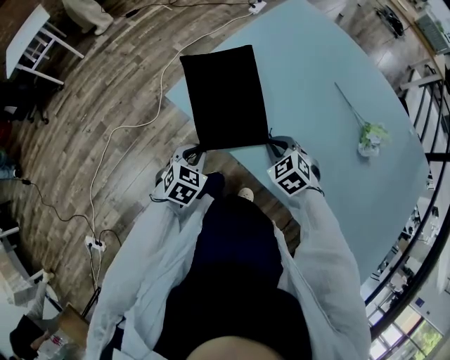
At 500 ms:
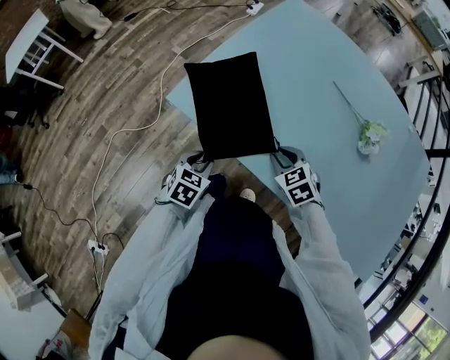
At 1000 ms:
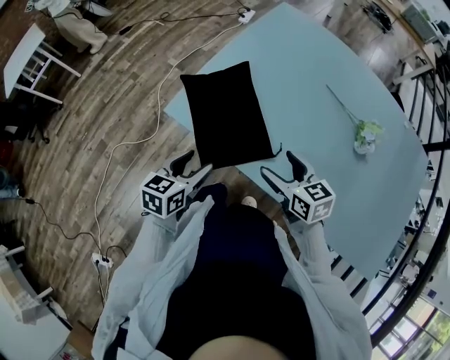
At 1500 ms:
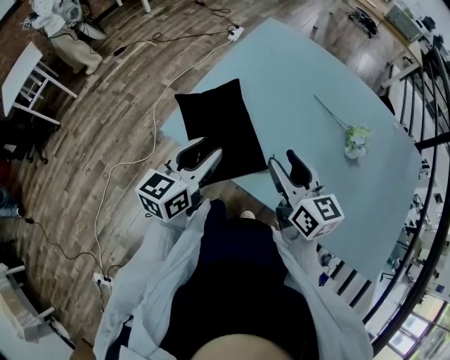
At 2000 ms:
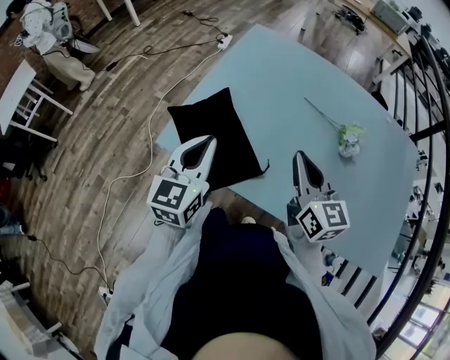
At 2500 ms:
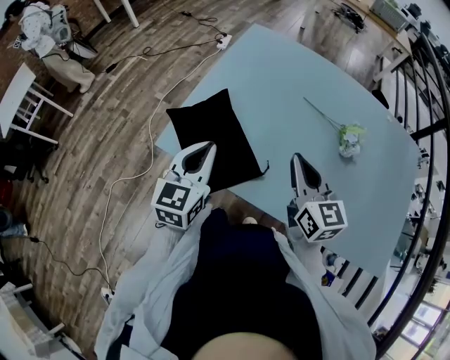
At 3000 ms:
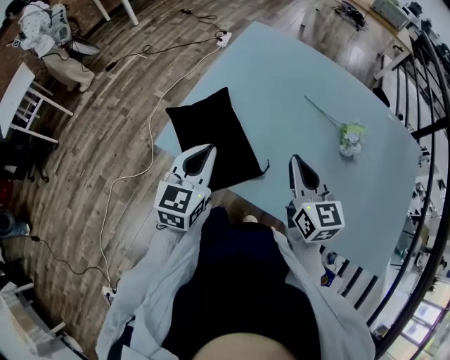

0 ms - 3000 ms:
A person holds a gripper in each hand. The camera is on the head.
0 ms - 1500 ms: Both grippers travel together upward, some 20 cm. The left gripper angles its fingers upward, by approximately 40 degrees, and opens; the right gripper tips its fingers upward by about 40 degrees, and opens.
1500 ms - 3000 ms: The right gripper is displaced to the right by approximately 5 cm, and closes; the left gripper closes up.

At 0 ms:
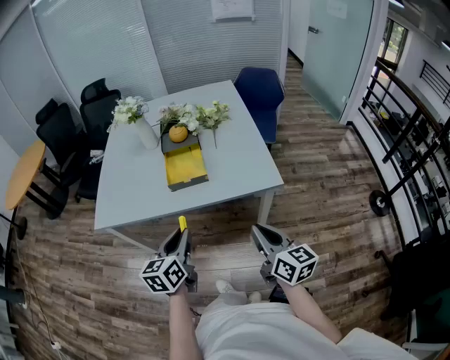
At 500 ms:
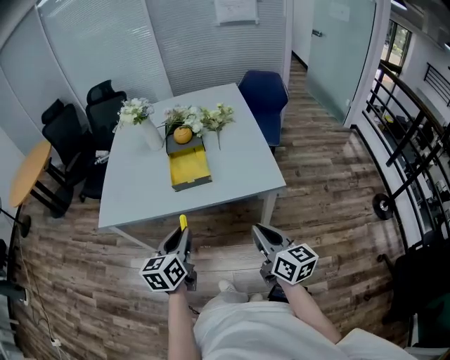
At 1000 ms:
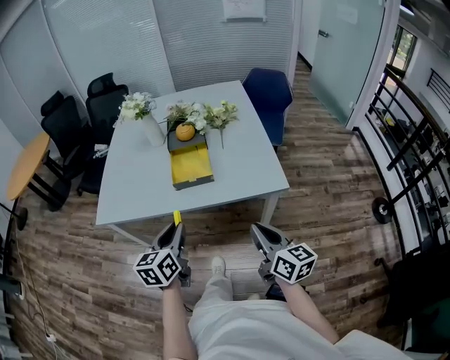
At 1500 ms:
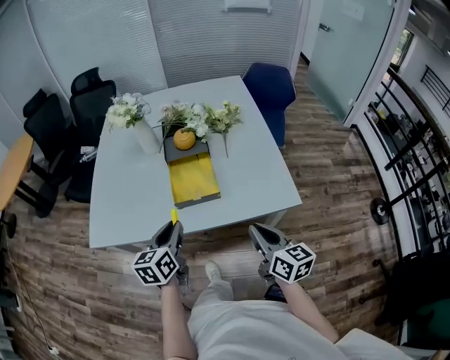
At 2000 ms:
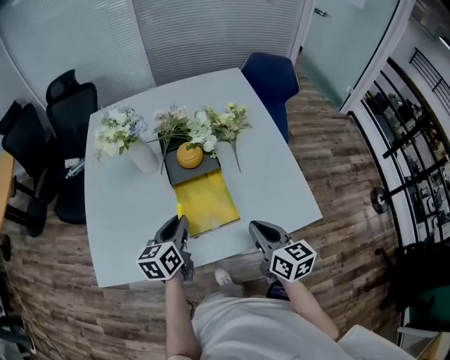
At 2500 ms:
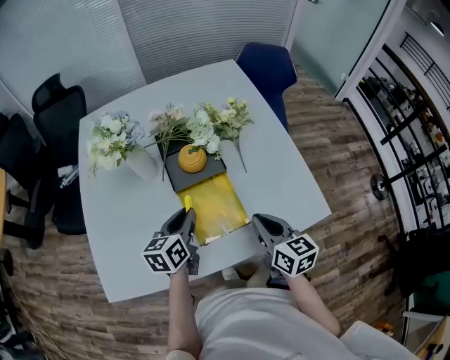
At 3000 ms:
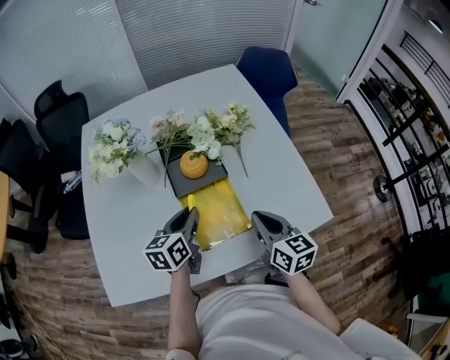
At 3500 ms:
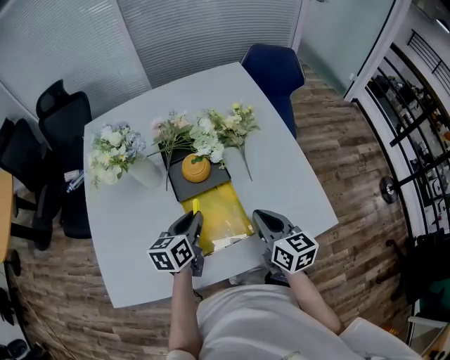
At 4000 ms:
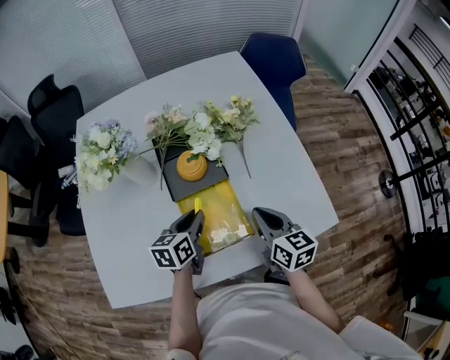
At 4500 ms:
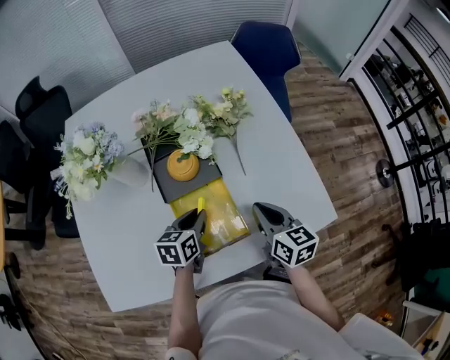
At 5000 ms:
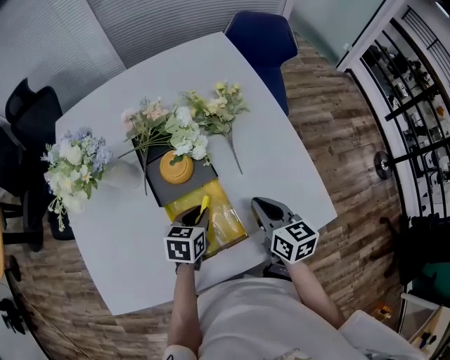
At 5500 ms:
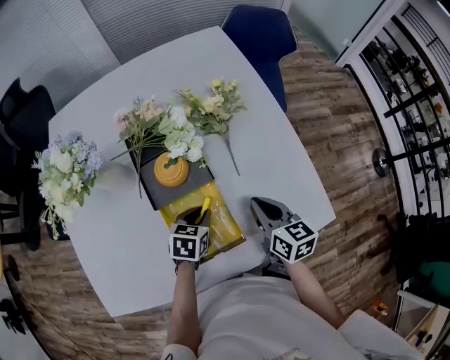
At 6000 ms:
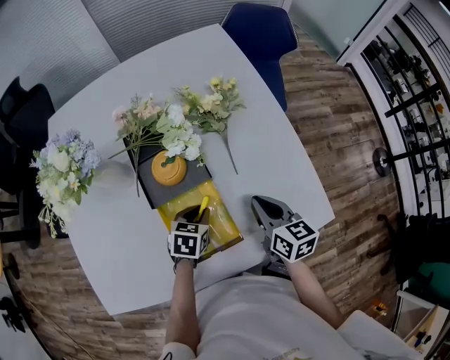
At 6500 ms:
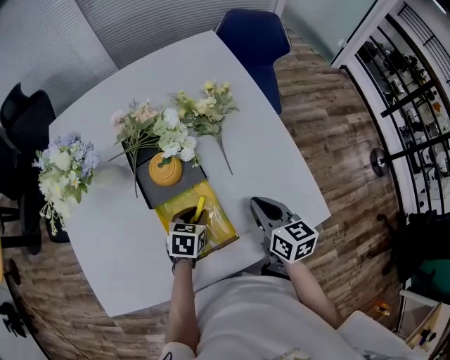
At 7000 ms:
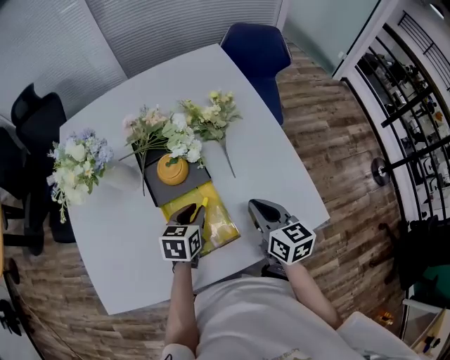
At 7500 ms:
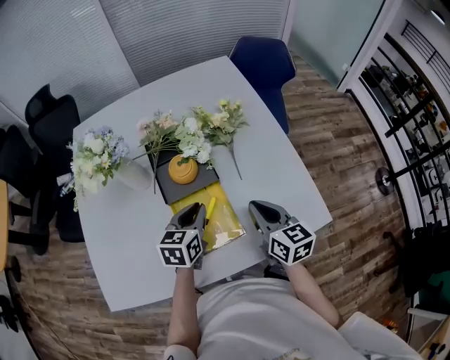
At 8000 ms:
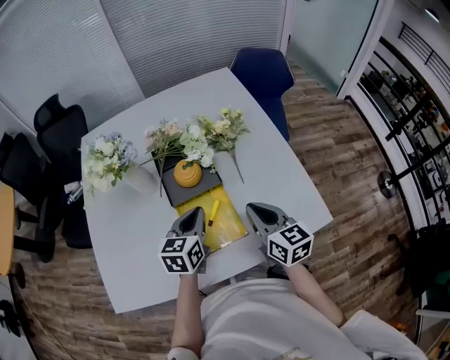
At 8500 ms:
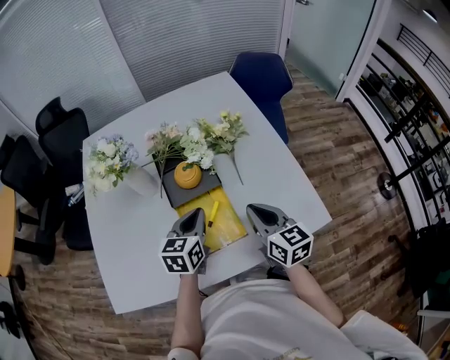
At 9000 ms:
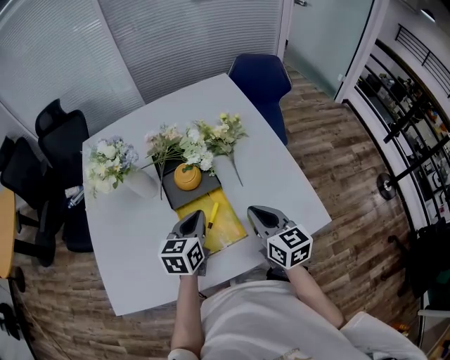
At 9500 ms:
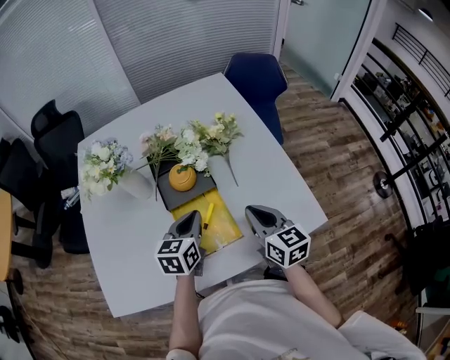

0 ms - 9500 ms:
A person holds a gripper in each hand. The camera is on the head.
0 ms - 2000 ms: Both grippers move forward, some 30 cm.
2000 ms - 4000 ms: The left gripper shifts approximately 10 cm forward and downward. The right gripper heads forward, covering roughly 10 cm.
4000 ms - 5500 ms: The left gripper shifts roughly 10 cm downward and to the right, and changes its angle by some 30 degrees, while the right gripper is displaced forward by about 5 cm.
5500 ms - 7500 ms: The right gripper heads upward, covering roughly 5 cm, while the left gripper heads upward, covering about 10 cm, and turns by some 20 degrees.
7500 ms - 9500 ms: The grippers move only a little.

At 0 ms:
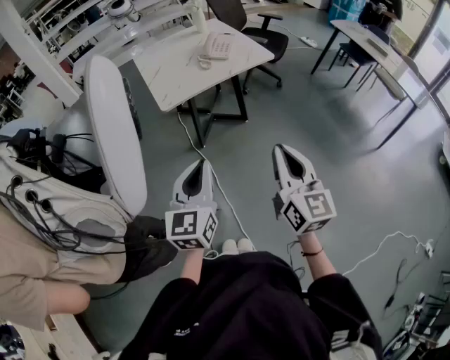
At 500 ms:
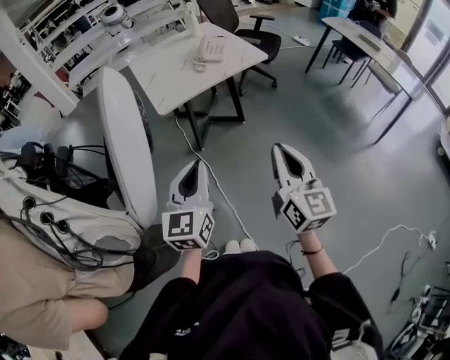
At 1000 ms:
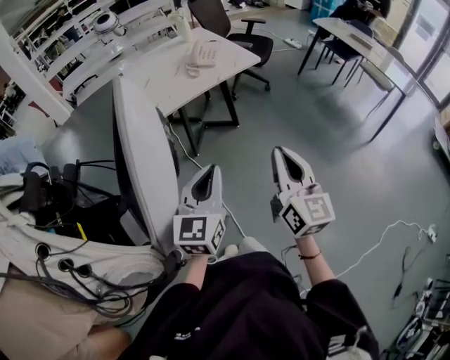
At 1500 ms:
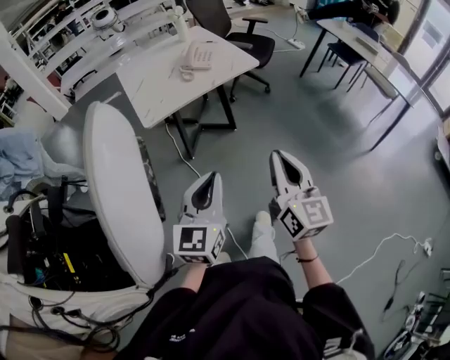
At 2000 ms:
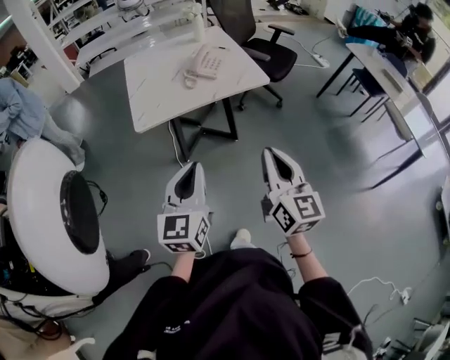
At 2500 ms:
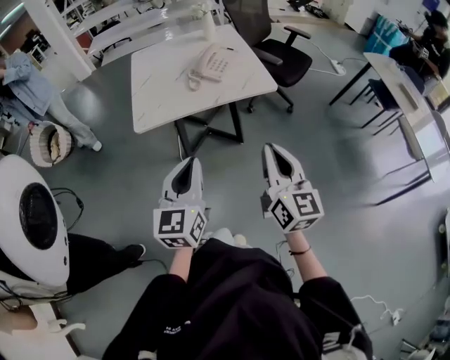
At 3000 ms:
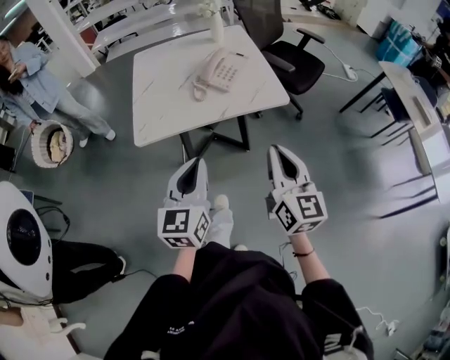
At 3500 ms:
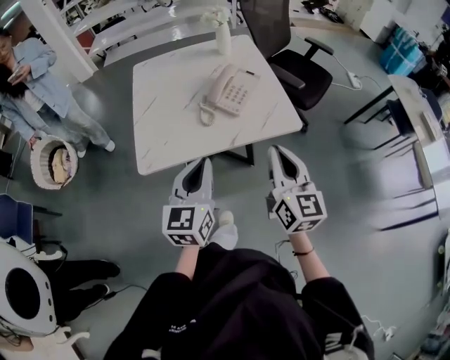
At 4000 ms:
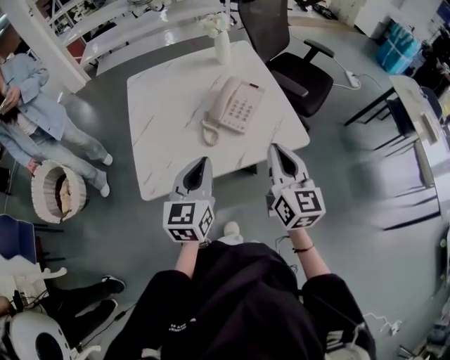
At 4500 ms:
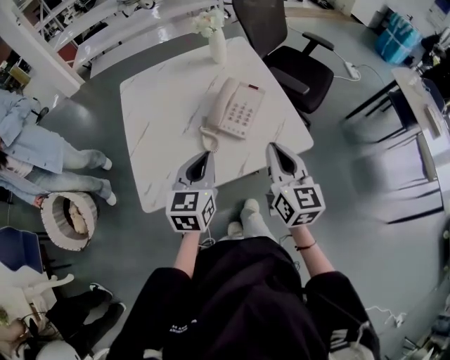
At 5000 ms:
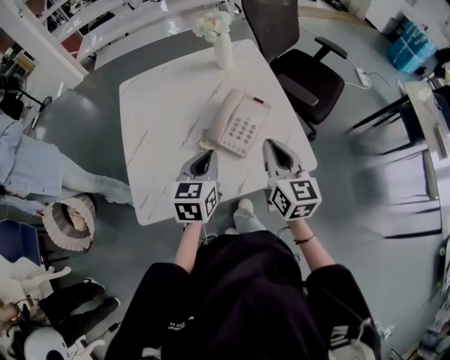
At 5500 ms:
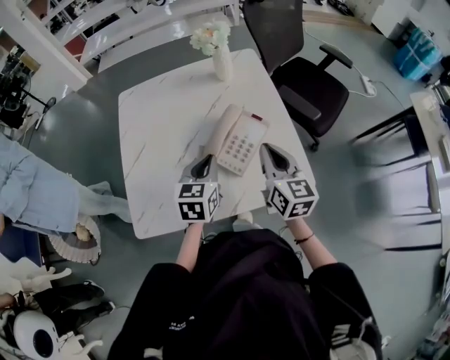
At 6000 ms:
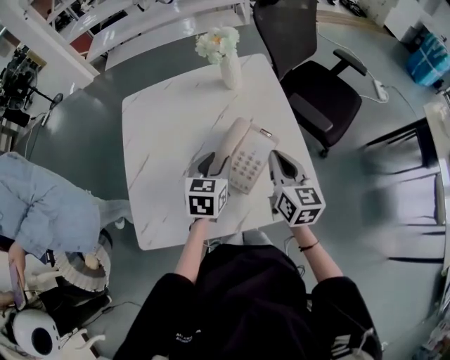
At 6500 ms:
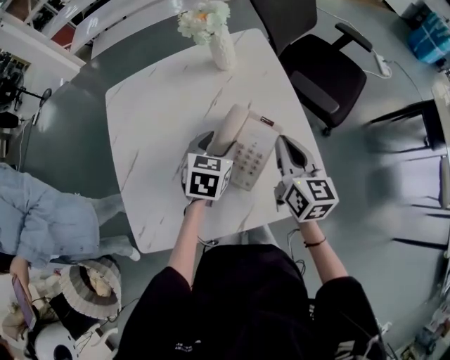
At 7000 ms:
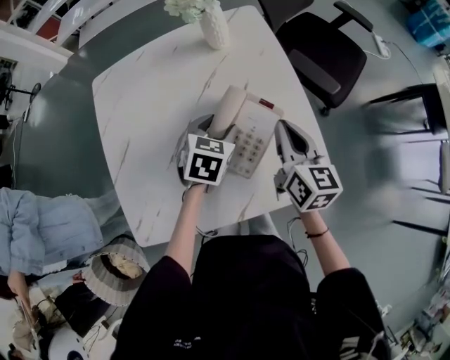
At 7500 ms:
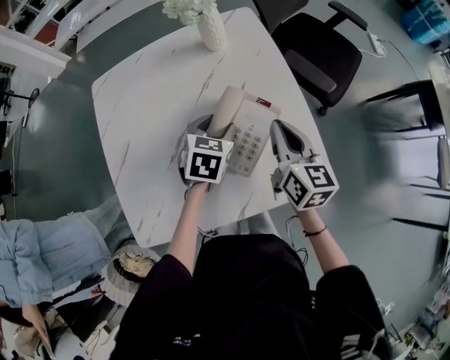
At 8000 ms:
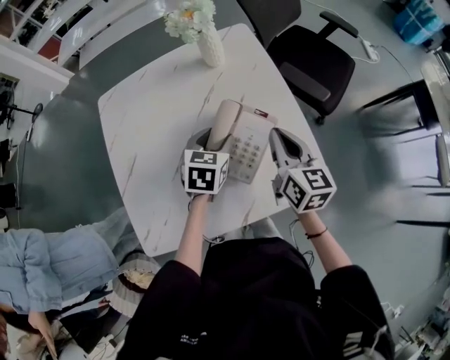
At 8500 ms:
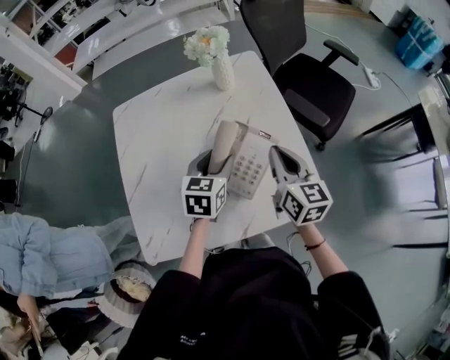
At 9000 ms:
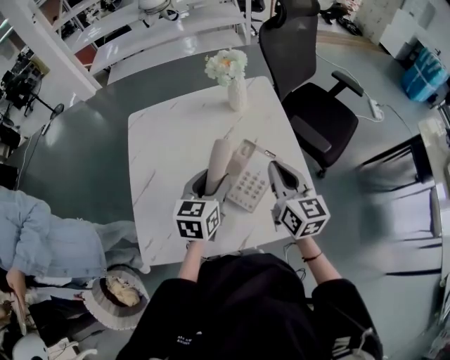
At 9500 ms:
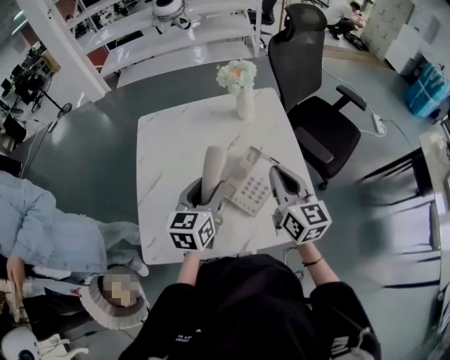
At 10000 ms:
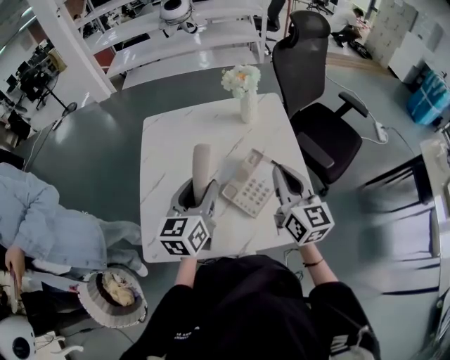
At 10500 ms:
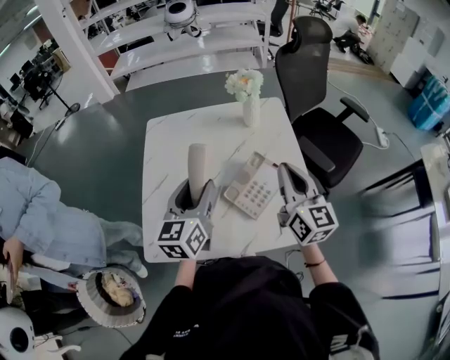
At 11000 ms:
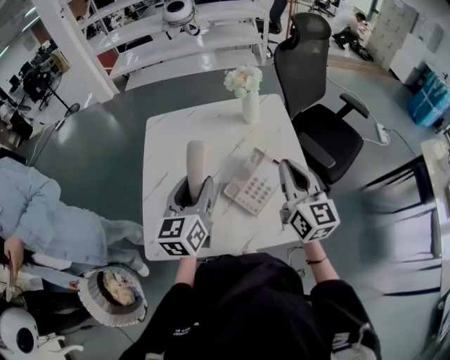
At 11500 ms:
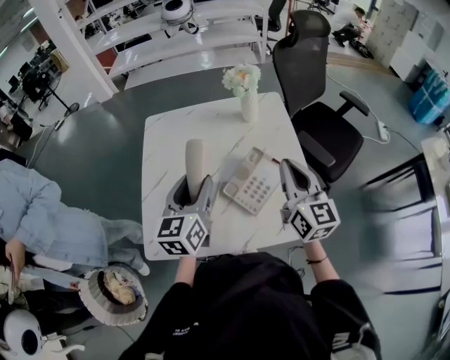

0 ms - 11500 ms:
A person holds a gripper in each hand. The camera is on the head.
0 ms - 2000 ms: Both grippers move forward and to the right, some 20 cm.
2000 ms - 4000 ms: The grippers both shift forward by about 40 cm.
4000 ms - 6000 ms: The left gripper is displaced forward and downward by approximately 30 cm, swivels about 20 degrees, and opens up. Meanwhile the right gripper moves forward, some 25 cm.
6000 ms - 7500 ms: The left gripper heads downward and forward, covering some 10 cm.
7500 ms - 9500 ms: The right gripper heads upward, covering roughly 10 cm. Meanwhile the left gripper heads upward, backward and to the left, covering some 20 cm, and swivels about 30 degrees.
9500 ms - 11500 ms: The left gripper travels upward by some 5 cm.

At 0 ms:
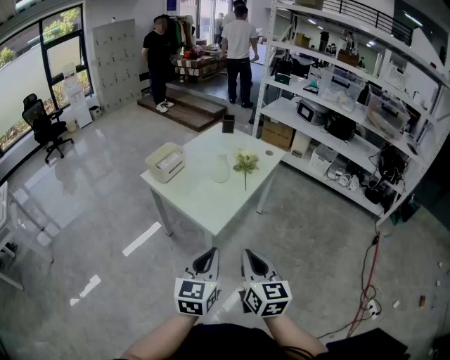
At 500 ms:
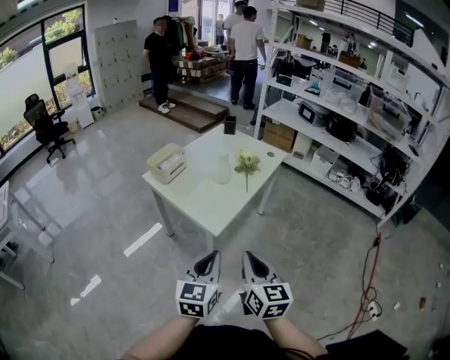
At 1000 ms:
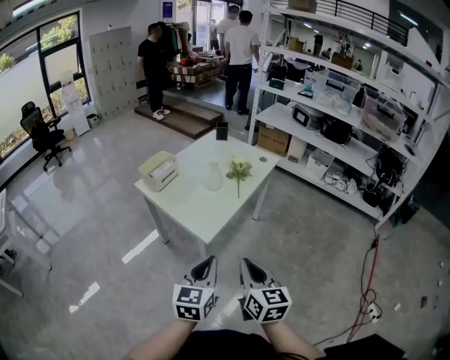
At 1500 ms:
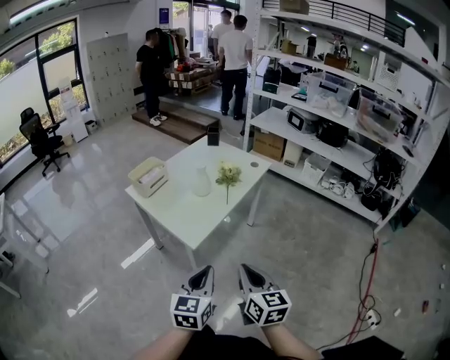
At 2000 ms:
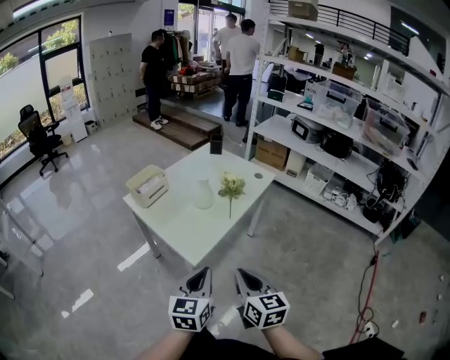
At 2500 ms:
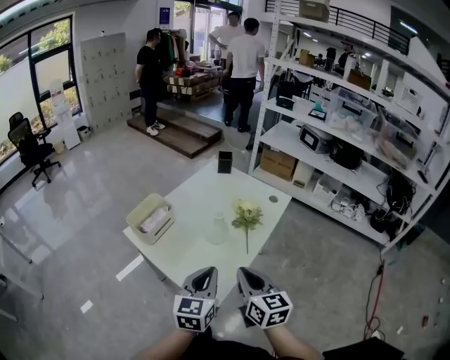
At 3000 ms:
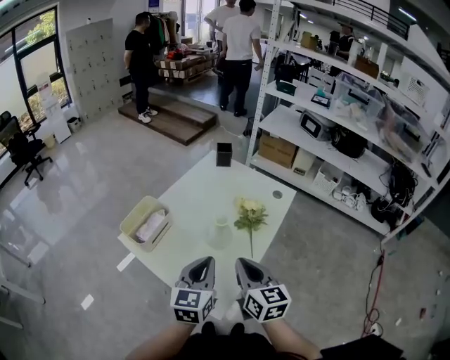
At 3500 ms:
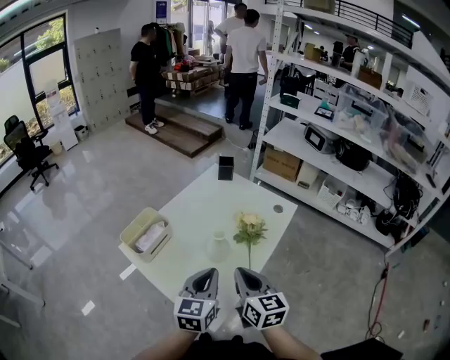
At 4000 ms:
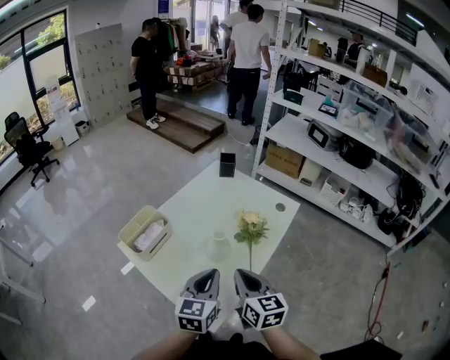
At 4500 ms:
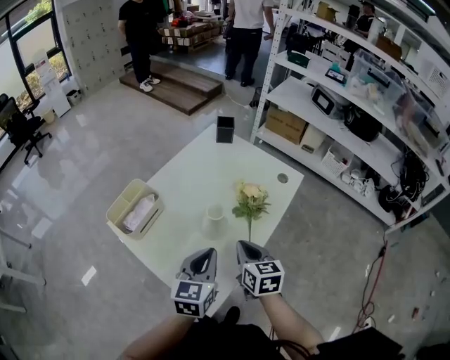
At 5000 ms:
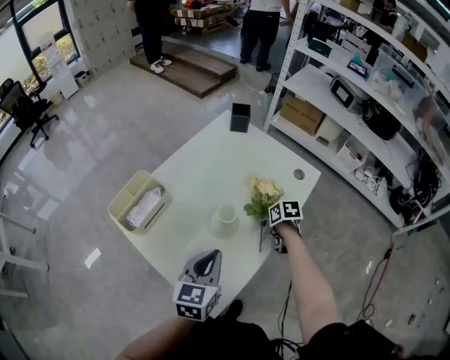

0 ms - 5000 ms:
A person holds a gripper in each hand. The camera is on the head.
0 ms - 2500 ms: The grippers both shift forward by some 25 cm.
2500 ms - 5000 ms: The right gripper is displaced forward and downward by approximately 40 cm, tilts its fingers about 50 degrees downward, and opens. The left gripper is displaced forward and downward by approximately 15 cm.
